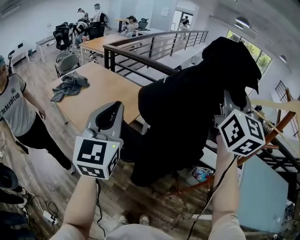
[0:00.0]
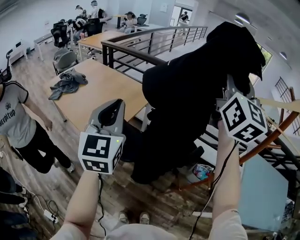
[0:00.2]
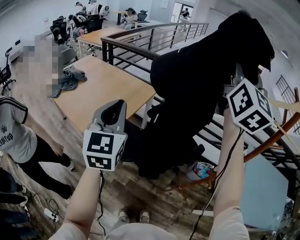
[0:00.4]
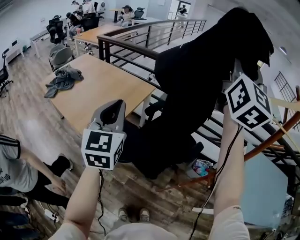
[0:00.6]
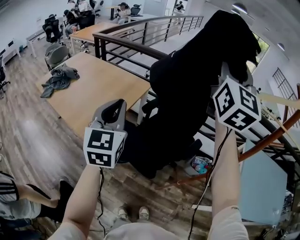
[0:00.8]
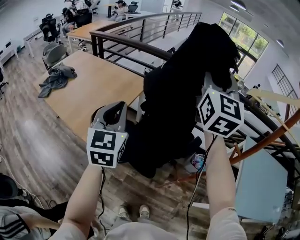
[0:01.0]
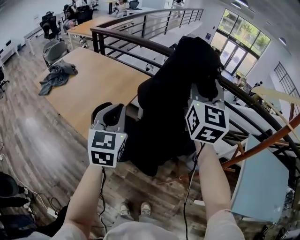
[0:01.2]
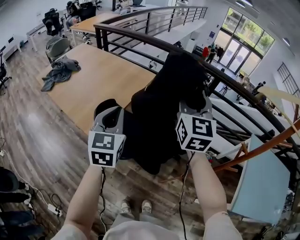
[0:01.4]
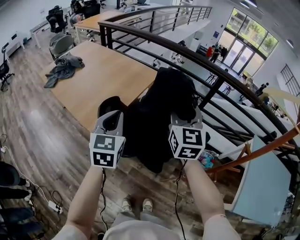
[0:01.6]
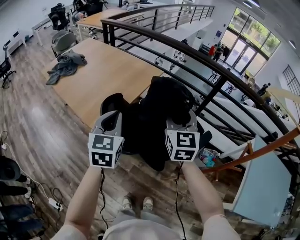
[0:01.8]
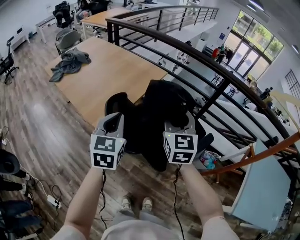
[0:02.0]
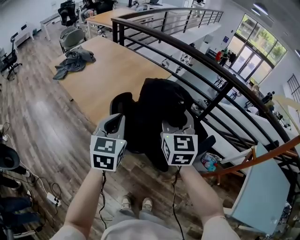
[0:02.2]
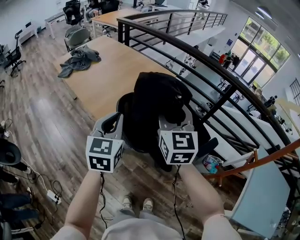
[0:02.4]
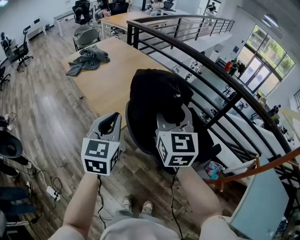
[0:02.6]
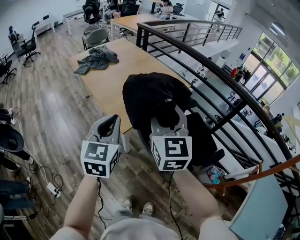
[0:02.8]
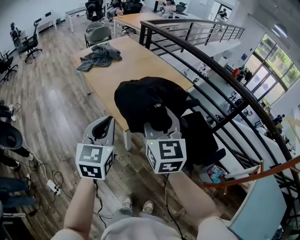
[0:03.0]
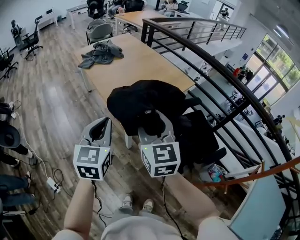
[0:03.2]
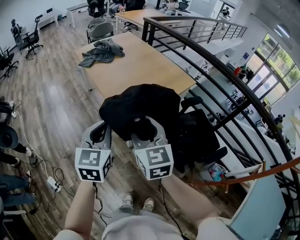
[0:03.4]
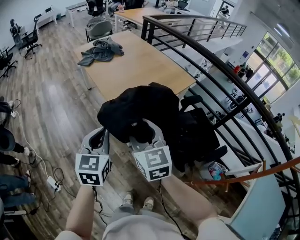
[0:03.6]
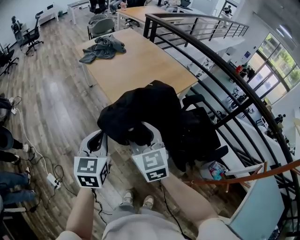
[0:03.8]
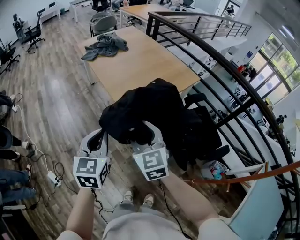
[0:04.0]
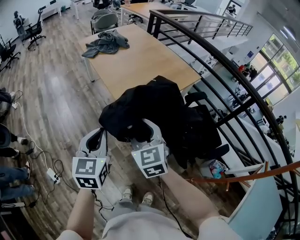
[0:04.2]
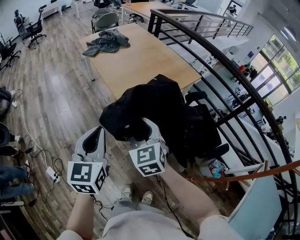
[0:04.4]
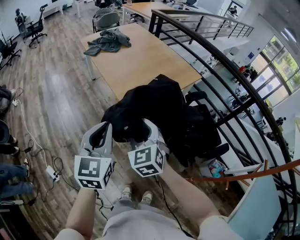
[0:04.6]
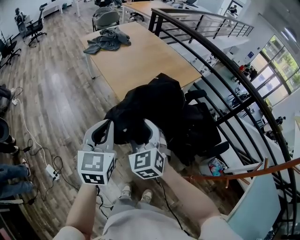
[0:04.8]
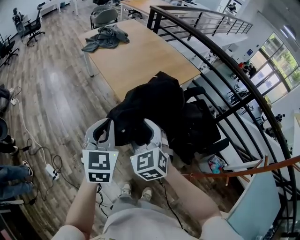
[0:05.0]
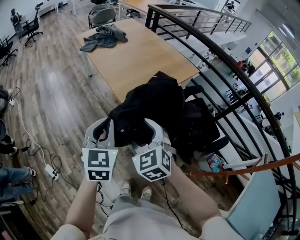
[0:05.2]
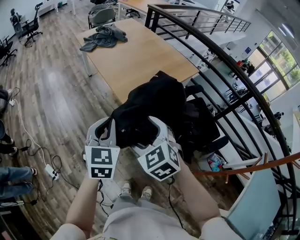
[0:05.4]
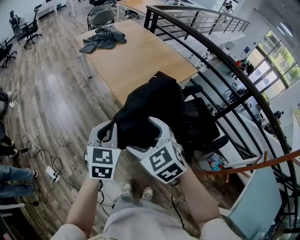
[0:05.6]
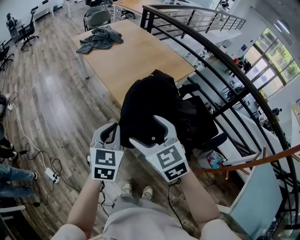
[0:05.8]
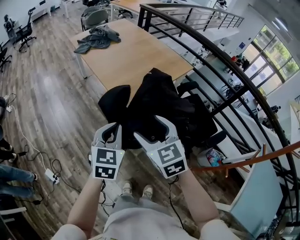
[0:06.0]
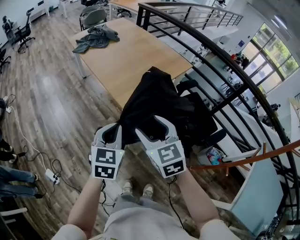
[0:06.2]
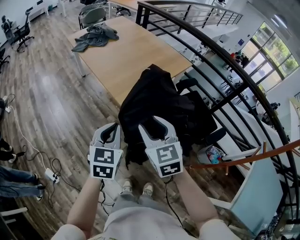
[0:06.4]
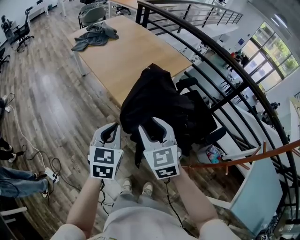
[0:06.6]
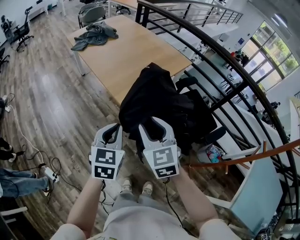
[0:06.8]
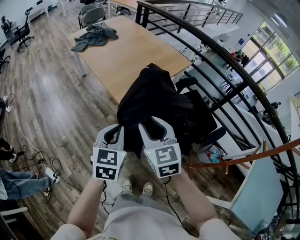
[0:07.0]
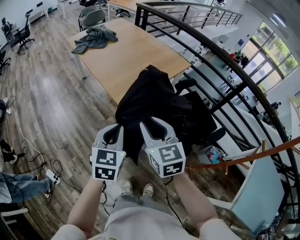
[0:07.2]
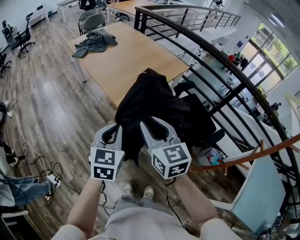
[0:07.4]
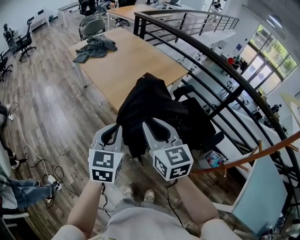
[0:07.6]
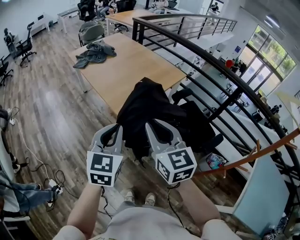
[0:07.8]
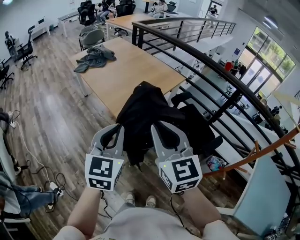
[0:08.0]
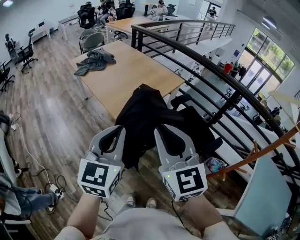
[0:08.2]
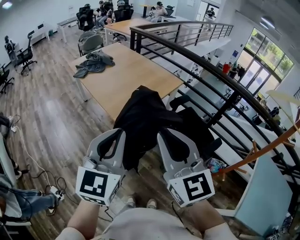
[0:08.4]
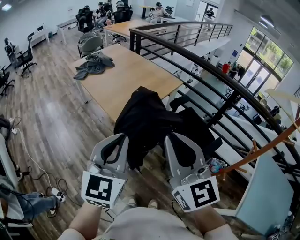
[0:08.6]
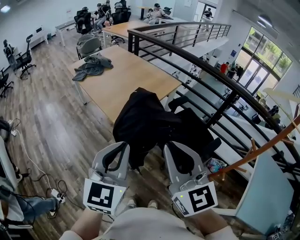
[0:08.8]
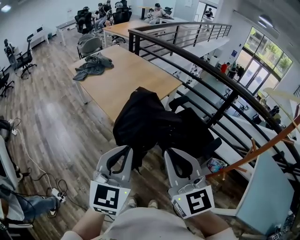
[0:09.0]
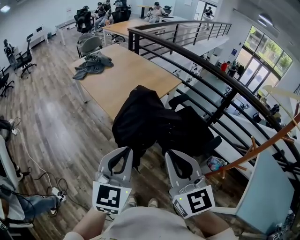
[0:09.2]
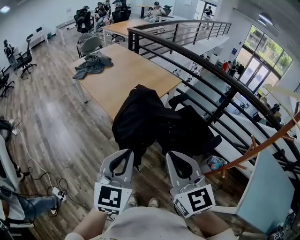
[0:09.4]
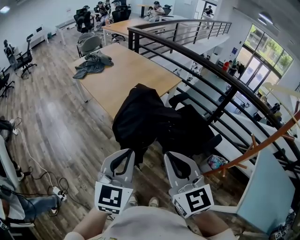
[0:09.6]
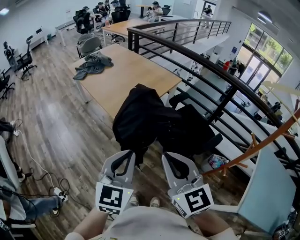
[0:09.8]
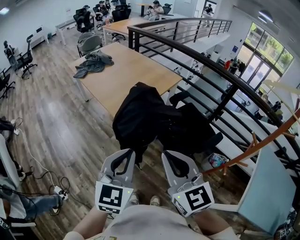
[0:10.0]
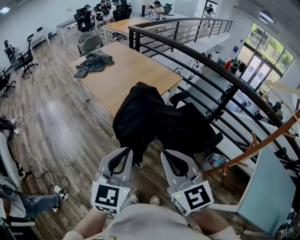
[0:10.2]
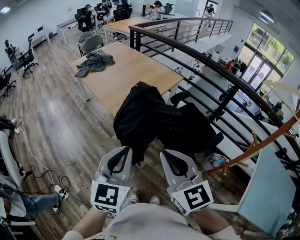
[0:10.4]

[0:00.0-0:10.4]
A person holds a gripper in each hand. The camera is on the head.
0:00.0 to 0:01.4: The two grippers go approximately 25 cm downward and forward.
0:01.4 to 0:03.0: The left gripper is displaced to the left and backward by some 25 cm, while the right gripper moves to the left, about 30 cm, and swivels some 30 degrees.
0:03.0 to 0:04.4: The right gripper travels downward and to the left by about 15 cm, and swivels about 30 degrees. Meanwhile the left gripper is displaced to the left and backward by approximately 10 cm.
0:04.4 to 0:06.0: The right gripper shifts approximately 5 cm backward, and opens up. Meanwhile the left gripper heads downward and to the right, covering some 10 cm.
0:06.0 to 0:07.4: The right gripper changes place by approximately 5 cm, and closes.
0:07.4 to 0:09.0: The left gripper goes approximately 20 cm upward, backward and to the right. Meanwhile the right gripper is displaced backward, upward and to the right by about 20 cm.
0:09.0 to 0:10.4: There are only small adjustments of the grippers.

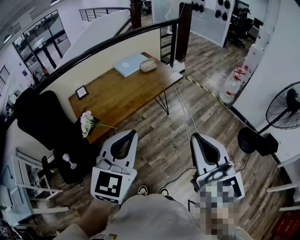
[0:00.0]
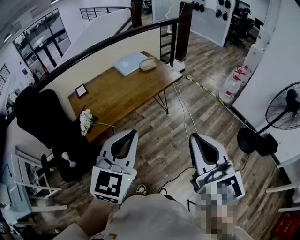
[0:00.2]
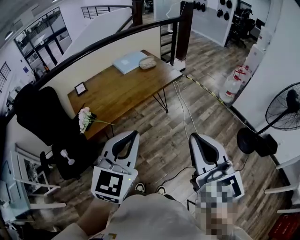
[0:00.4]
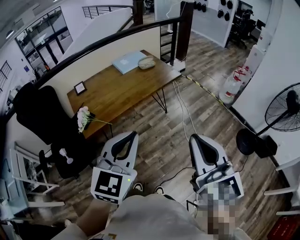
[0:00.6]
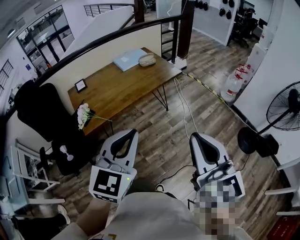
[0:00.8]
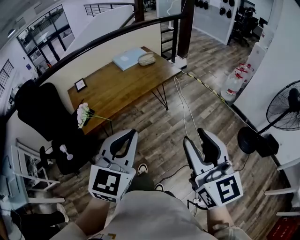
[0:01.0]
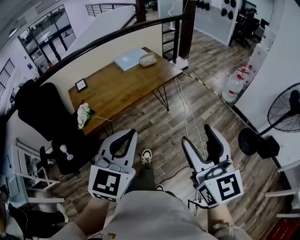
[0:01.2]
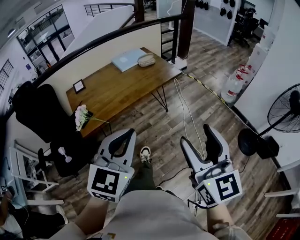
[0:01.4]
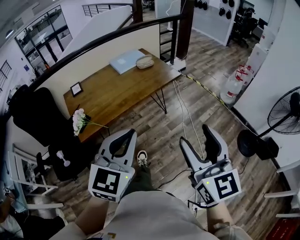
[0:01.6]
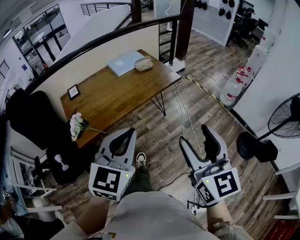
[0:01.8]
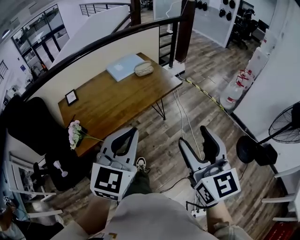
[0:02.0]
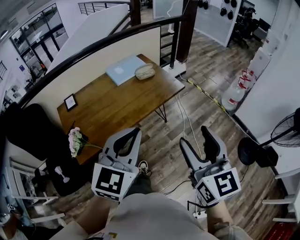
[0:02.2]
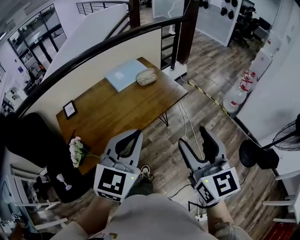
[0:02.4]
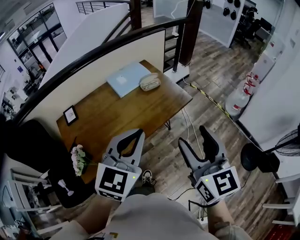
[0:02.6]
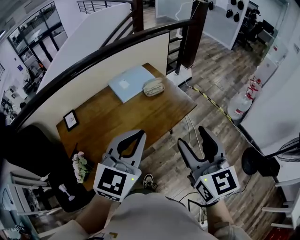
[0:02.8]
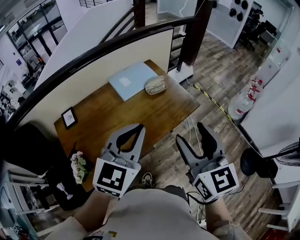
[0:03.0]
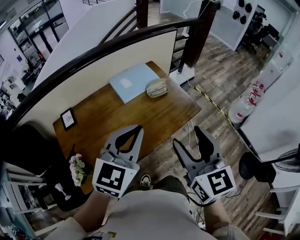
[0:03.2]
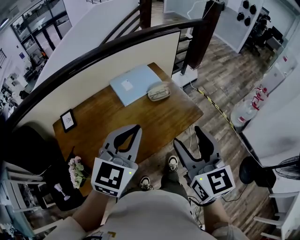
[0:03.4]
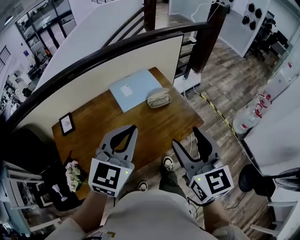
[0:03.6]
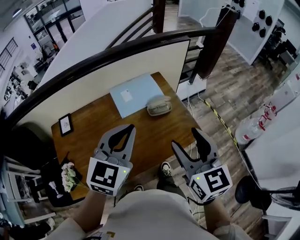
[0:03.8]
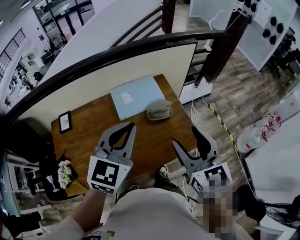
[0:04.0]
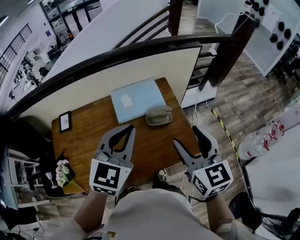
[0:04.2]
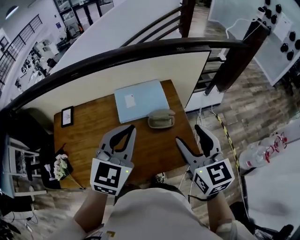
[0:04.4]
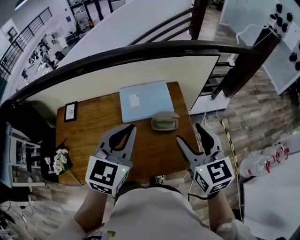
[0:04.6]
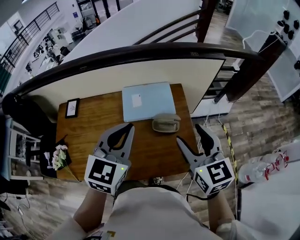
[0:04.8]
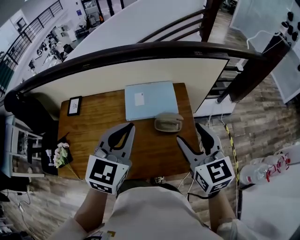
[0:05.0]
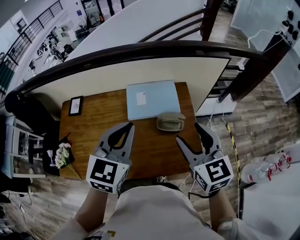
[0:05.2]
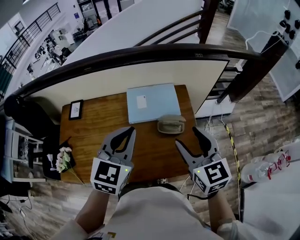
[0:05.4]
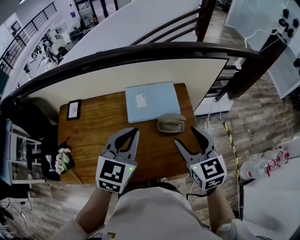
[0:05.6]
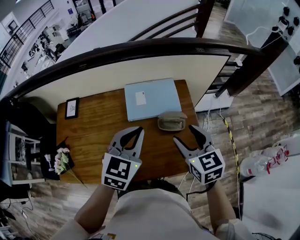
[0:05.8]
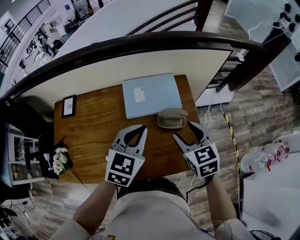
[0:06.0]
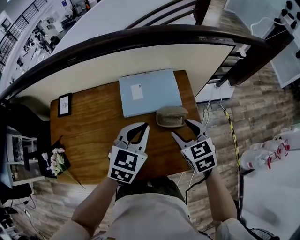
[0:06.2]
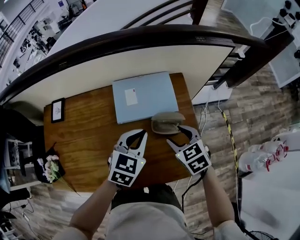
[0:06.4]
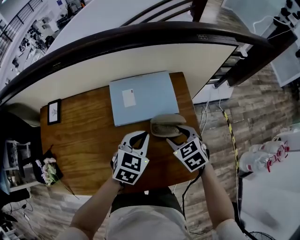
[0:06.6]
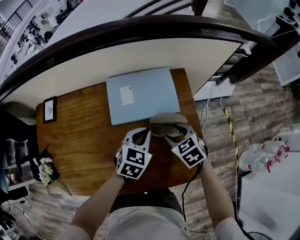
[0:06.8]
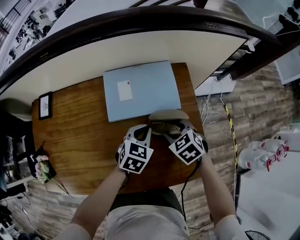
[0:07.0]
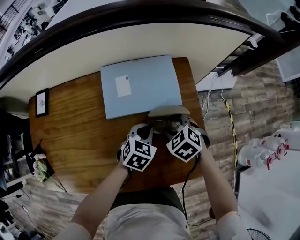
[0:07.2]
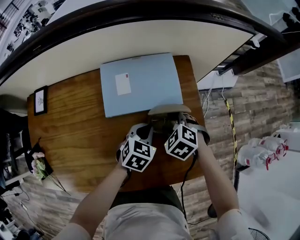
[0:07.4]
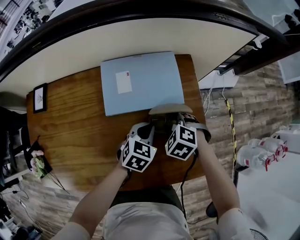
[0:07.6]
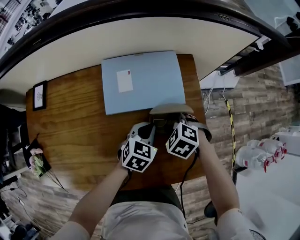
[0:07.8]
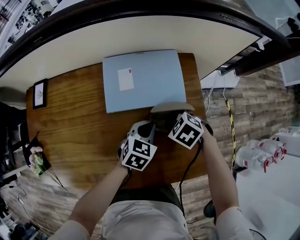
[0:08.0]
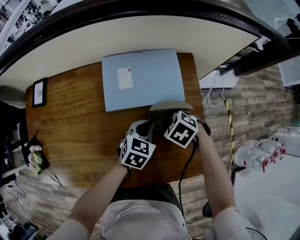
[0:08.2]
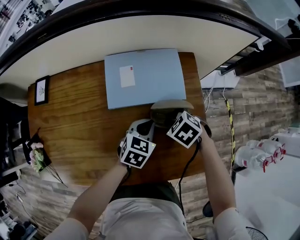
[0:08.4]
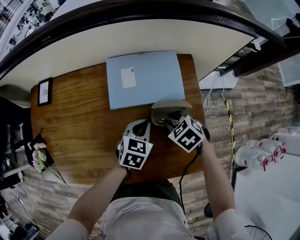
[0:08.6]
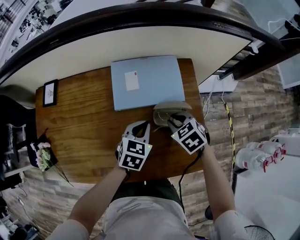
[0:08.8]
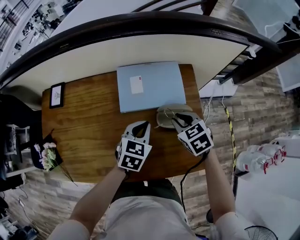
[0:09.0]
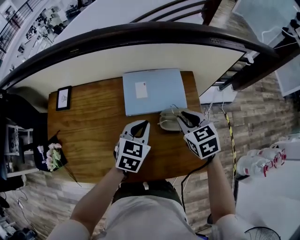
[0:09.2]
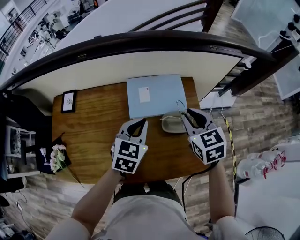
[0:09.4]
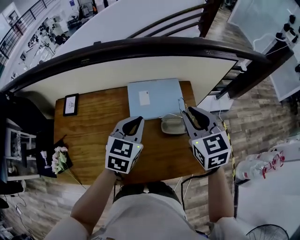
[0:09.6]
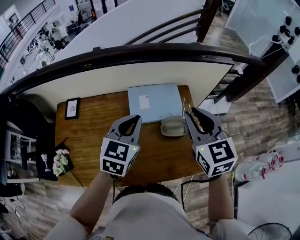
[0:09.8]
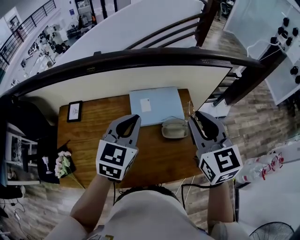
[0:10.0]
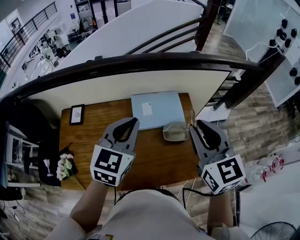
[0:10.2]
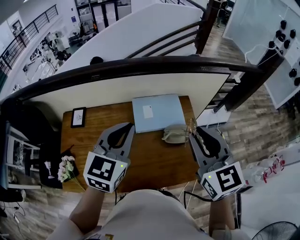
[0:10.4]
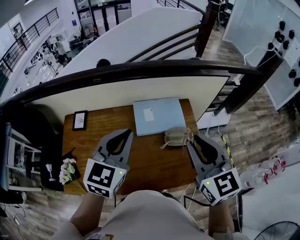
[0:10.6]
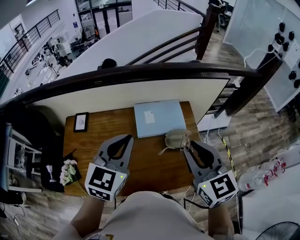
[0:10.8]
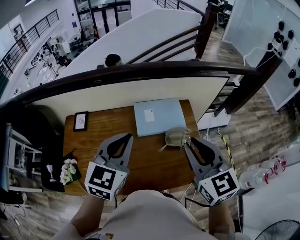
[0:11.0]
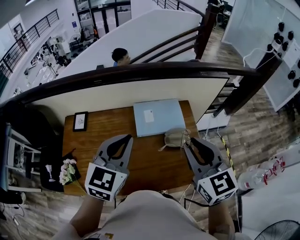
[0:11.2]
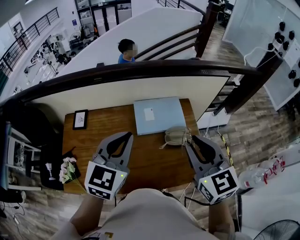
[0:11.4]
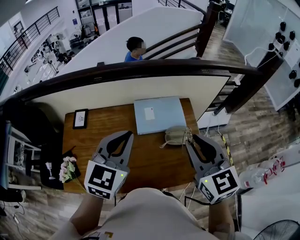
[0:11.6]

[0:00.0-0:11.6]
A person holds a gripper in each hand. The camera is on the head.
0:00.0 to 0:01.4: The two grippers go approximately 5 cm to the right. The right gripper opens up.
0:01.4 to 0:02.8: The pair of grippers is taken forward, about 40 cm.
0:02.8 to 0:04.4: The right gripper changes place by some 40 cm, and swivels some 30 degrees; the left gripper shifts by some 35 cm, and turns by about 30 degrees.
0:04.4 to 0:05.8: The left gripper moves downward, approximately 5 cm. The right gripper moves downward and forward, approximately 10 cm.
0:05.8 to 0:07.2: Both grippers move downward, some 30 cm. The right gripper angles its fingers downward, by approximately 30 degrees. Meanwhile the left gripper turns by approximately 30 degrees.
0:07.2 to 0:08.8: The right gripper closes its fingers, while the left gripper goes roughly 5 cm upward.
0:08.8 to 0:10.2: The two grippers go roughly 35 cm upward. The left gripper turns by about 30 degrees. Meanwhile the right gripper tips its fingers upward by some 50 degrees.
0:10.2 to 0:11.6: The left gripper ends up roughly 5 cm from where it was.

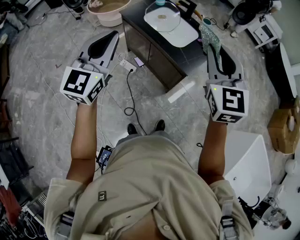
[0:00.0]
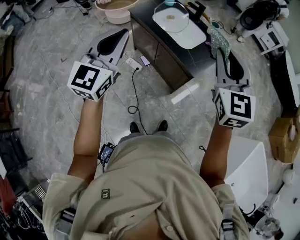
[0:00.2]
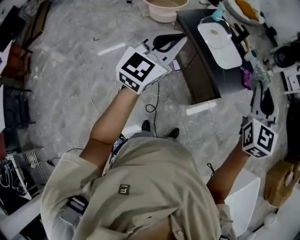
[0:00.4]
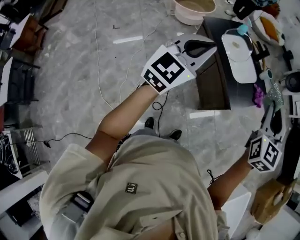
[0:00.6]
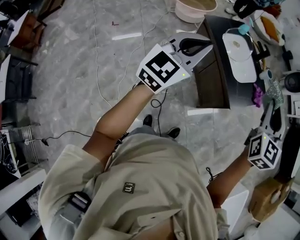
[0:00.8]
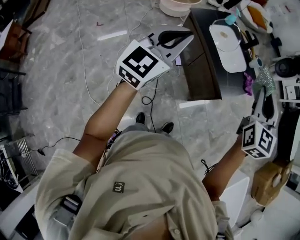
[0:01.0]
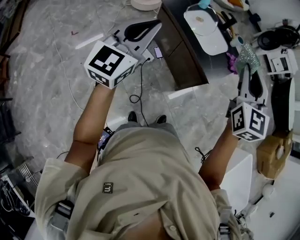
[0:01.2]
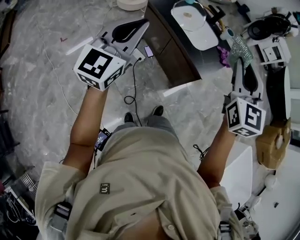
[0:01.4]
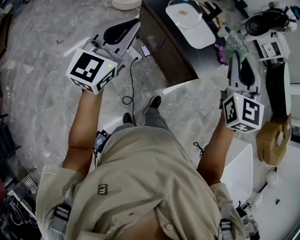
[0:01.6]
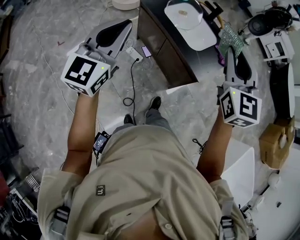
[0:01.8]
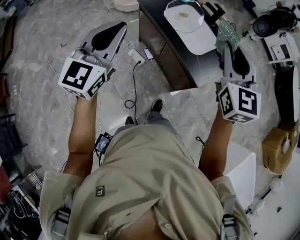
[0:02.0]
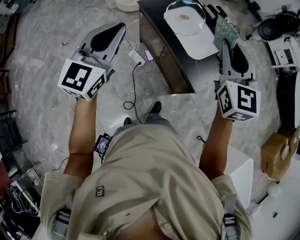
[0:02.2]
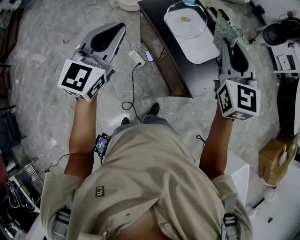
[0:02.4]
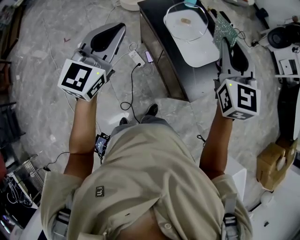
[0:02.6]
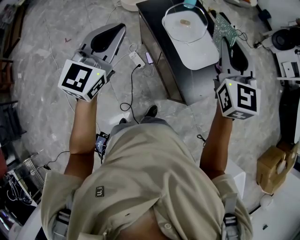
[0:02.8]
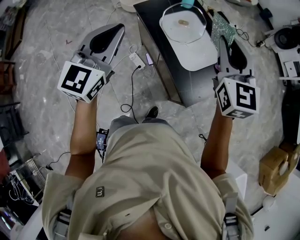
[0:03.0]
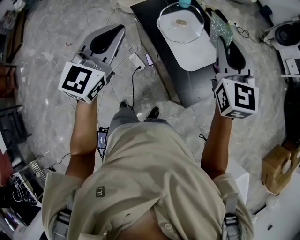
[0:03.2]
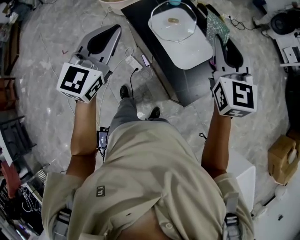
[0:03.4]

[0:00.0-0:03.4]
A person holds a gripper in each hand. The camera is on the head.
0:00.0 to 0:01.6: The two grippers go some 5 cm to the left.
0:01.6 to 0:03.4: Both grippers travel together forward and to the right, about 30 cm.
